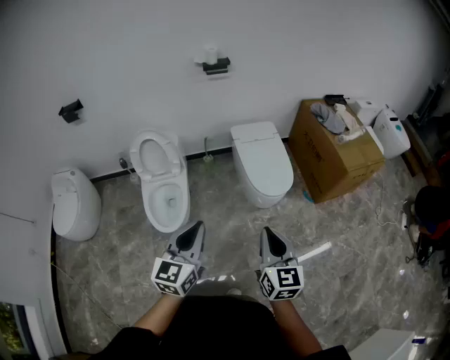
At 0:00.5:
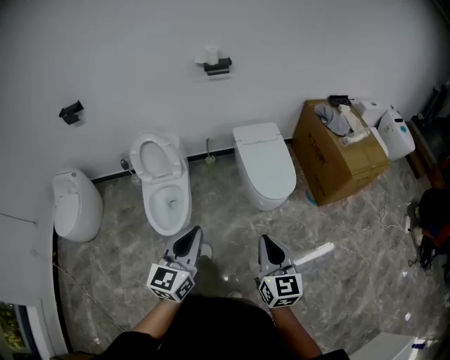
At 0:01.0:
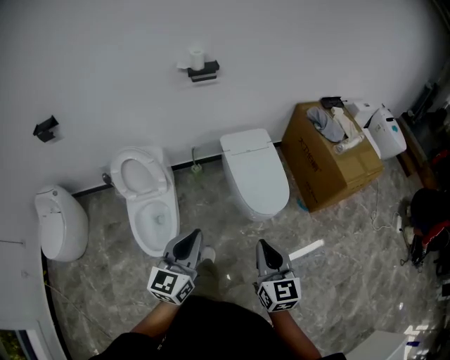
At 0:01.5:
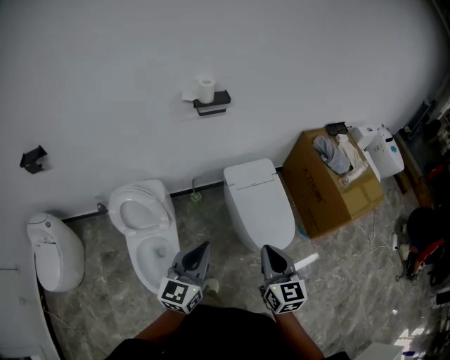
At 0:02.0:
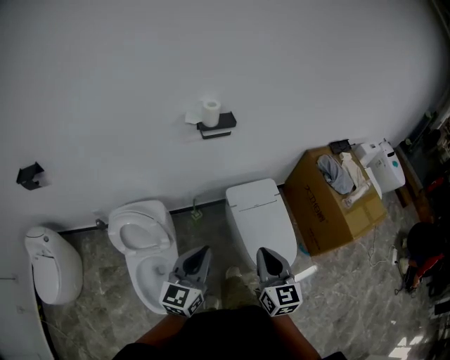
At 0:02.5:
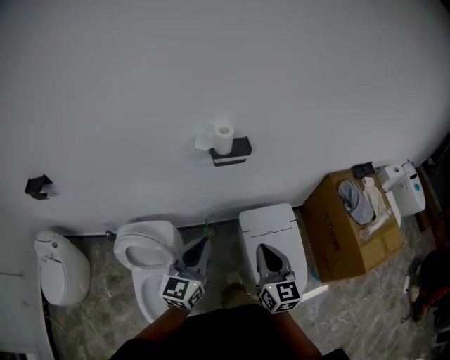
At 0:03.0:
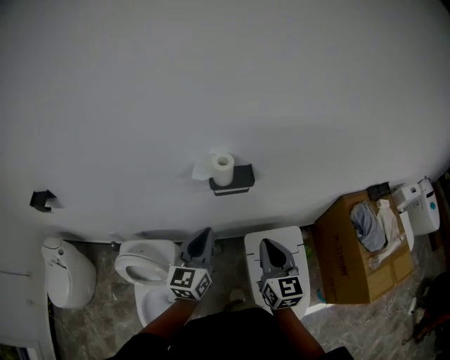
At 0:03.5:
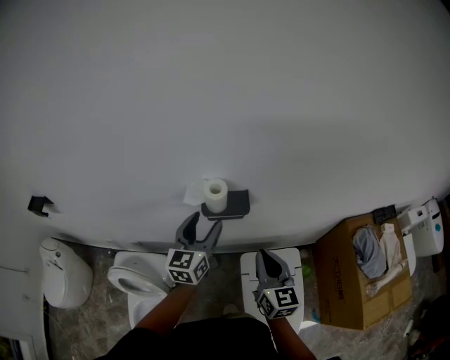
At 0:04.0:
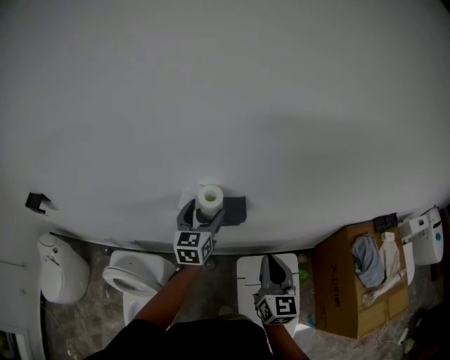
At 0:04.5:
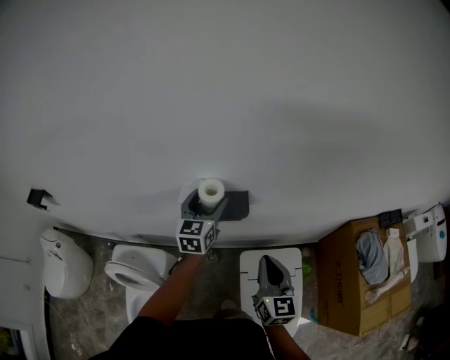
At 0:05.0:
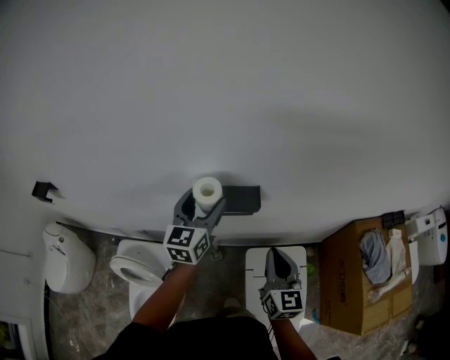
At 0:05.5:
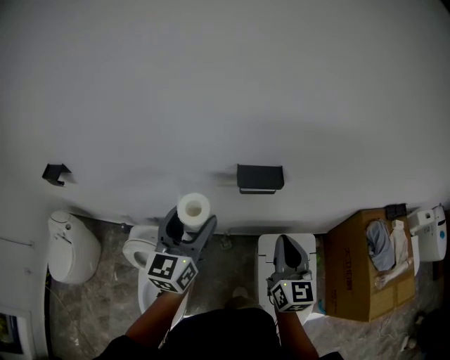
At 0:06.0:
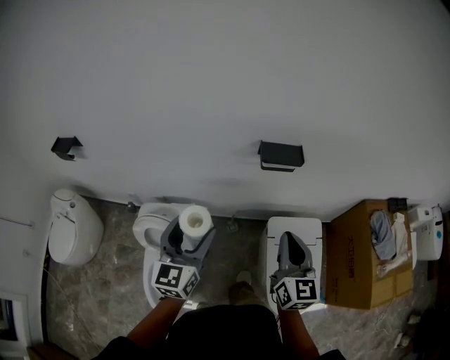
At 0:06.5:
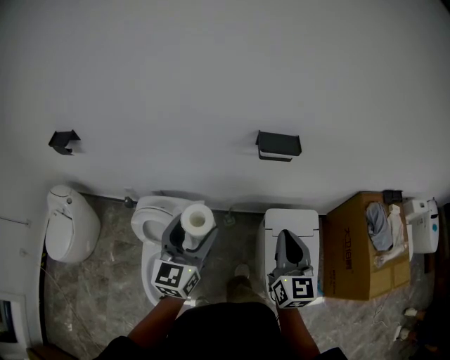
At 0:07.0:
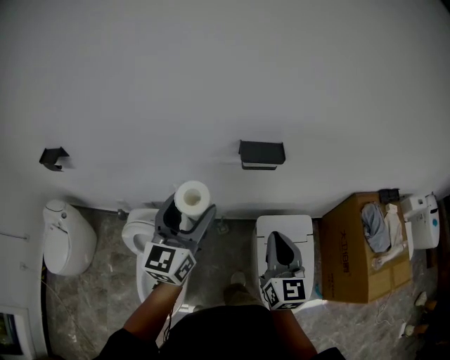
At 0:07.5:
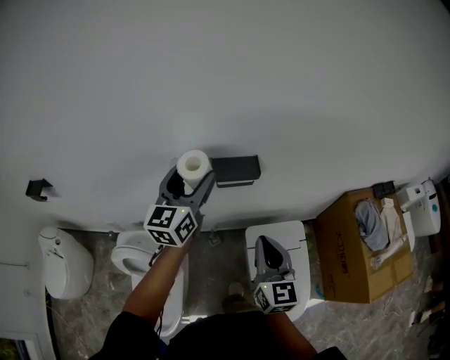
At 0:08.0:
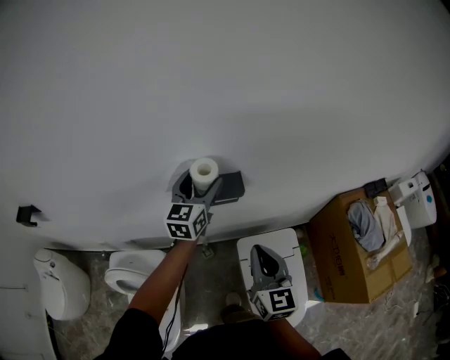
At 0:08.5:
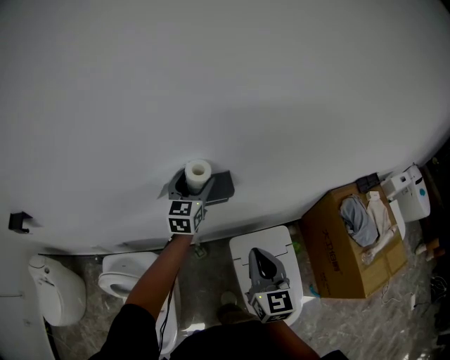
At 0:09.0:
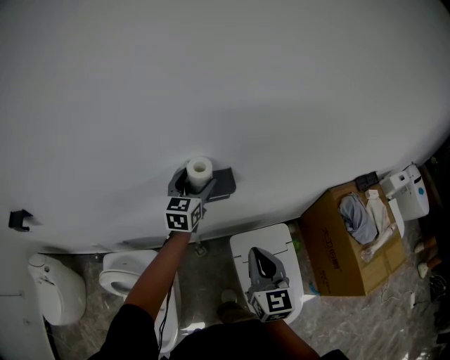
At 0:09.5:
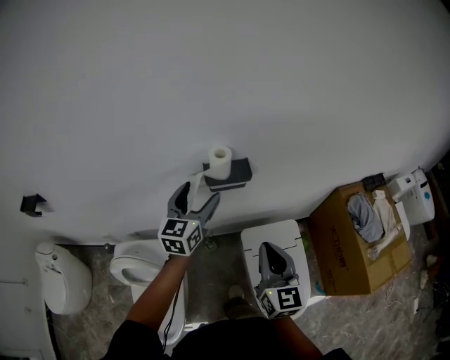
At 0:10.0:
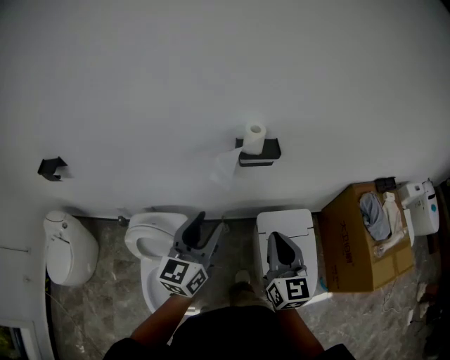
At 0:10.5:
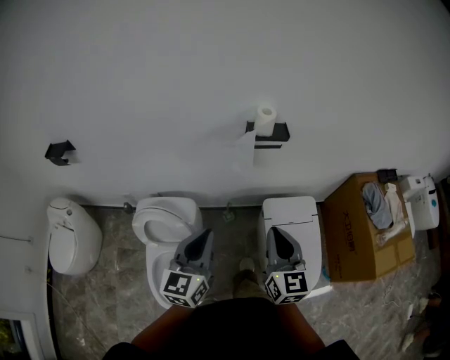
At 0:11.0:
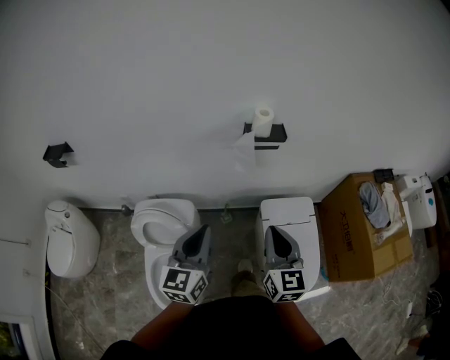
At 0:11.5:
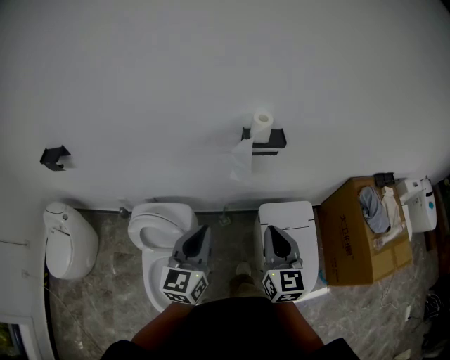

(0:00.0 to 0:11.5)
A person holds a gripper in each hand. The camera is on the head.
0:00.0 - 0:02.0: The pair of grippers is taken forward, some 50 cm.
0:02.0 - 0:04.0: The two grippers travel together, forward, roughly 50 cm. The left gripper turns by about 30 degrees, and opens up.
0:04.0 - 0:06.0: The left gripper is displaced backward and to the left by some 40 cm, while the right gripper shifts about 25 cm backward and to the left.
0:06.0 - 0:07.5: The left gripper heads forward and to the right, covering some 25 cm; the right gripper moves forward and to the right, roughly 10 cm.
0:07.5 - 0:09.5: The left gripper heads downward, covering roughly 5 cm, and reaches approximately 15 cm forward, then returns.
0:09.5 - 0:11.5: The right gripper is displaced backward and to the left by some 15 cm. The left gripper shifts some 30 cm backward, and closes.

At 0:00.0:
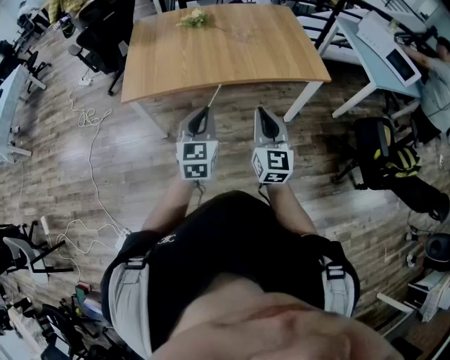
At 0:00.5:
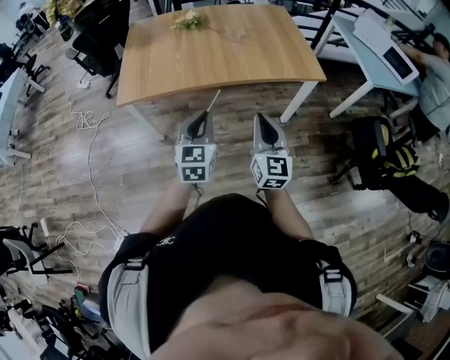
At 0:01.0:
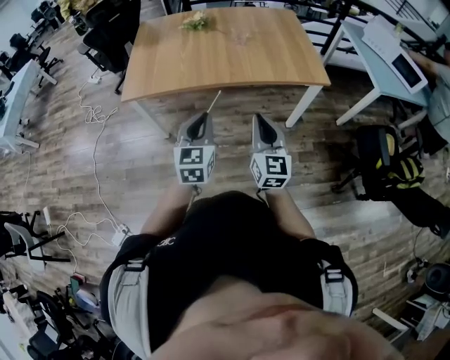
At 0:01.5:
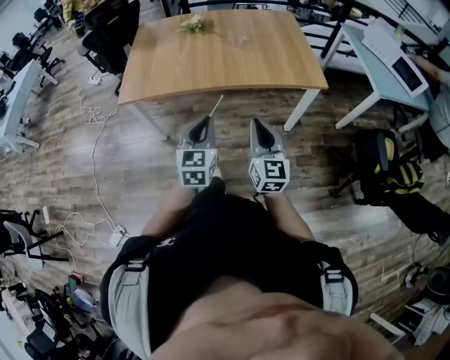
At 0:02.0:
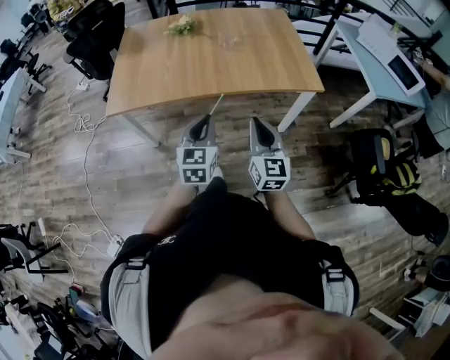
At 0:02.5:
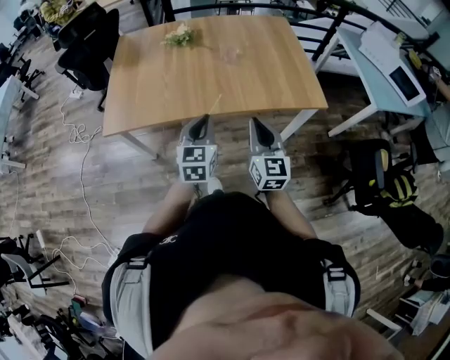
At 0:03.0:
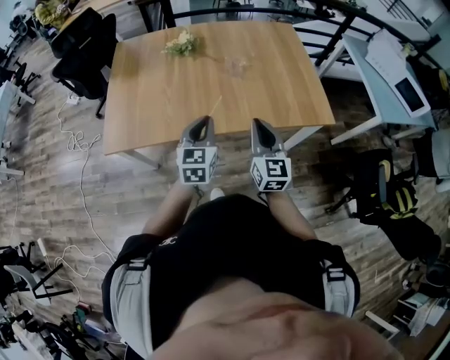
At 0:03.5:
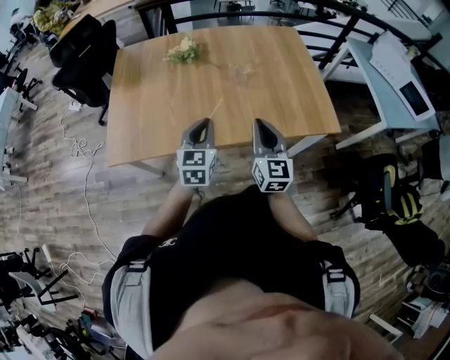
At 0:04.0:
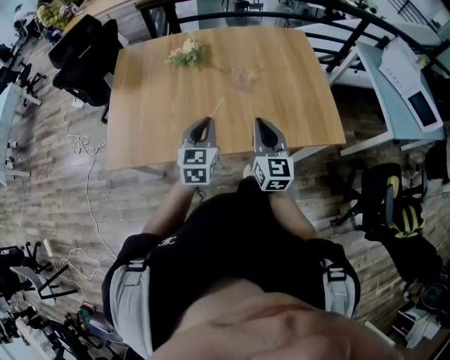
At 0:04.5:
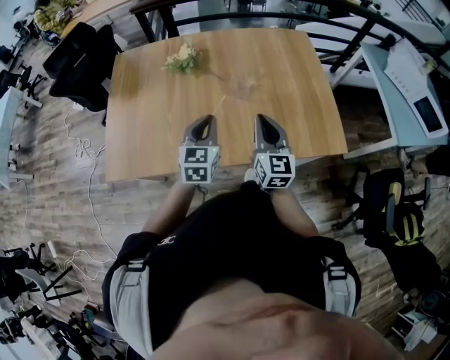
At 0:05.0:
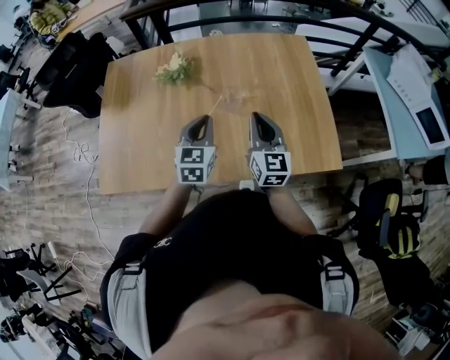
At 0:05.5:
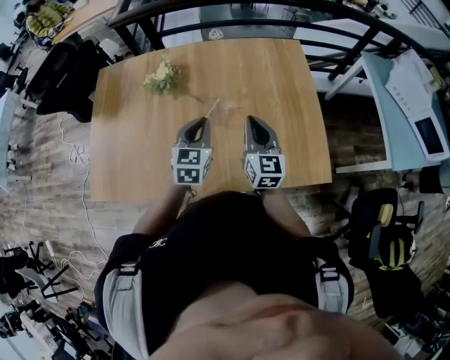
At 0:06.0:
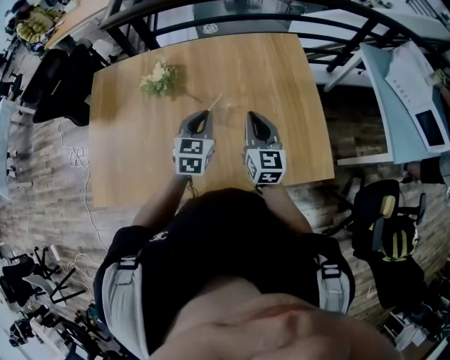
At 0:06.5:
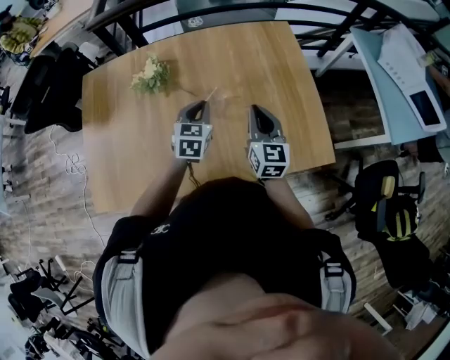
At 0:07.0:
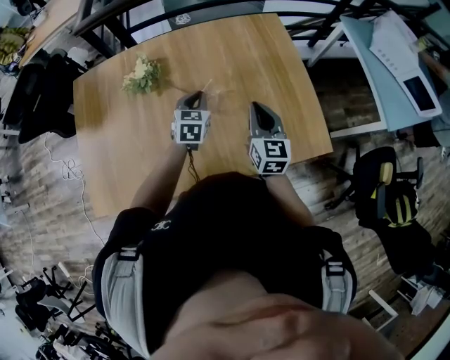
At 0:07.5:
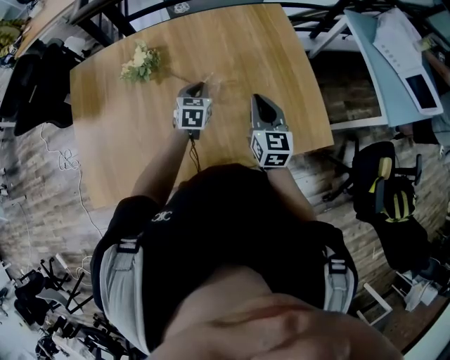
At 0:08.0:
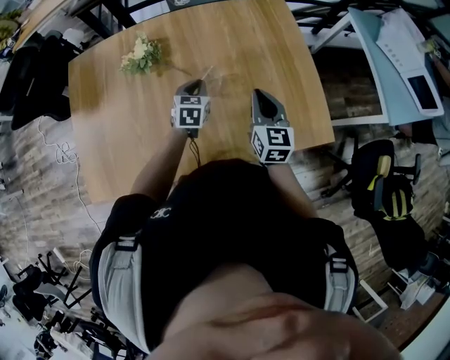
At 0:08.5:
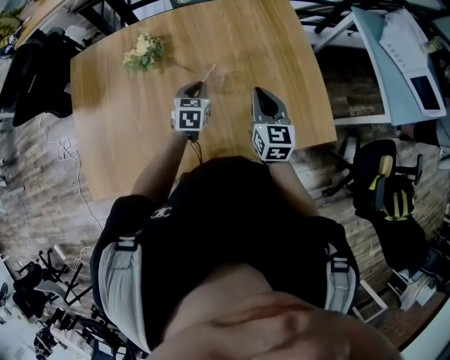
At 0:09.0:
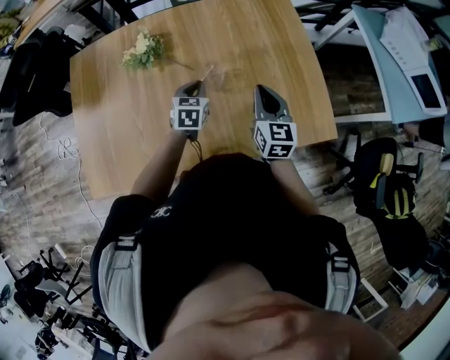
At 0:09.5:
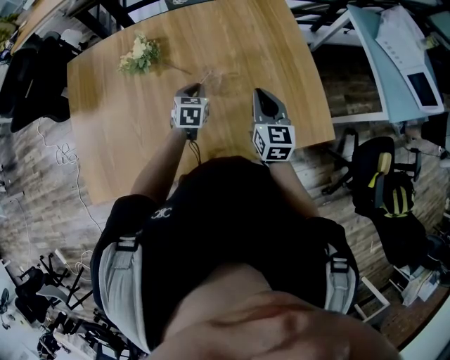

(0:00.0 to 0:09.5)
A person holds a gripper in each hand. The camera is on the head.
0:00.0 - 0:02.0: Both grippers move to the right and forward, about 10 cm.
0:02.0 - 0:04.0: Both grippers move forward, approximately 30 cm.
0:04.0 - 0:05.5: The grippers both shift forward and to the right by approximately 25 cm.
0:05.5 - 0:07.5: The left gripper heads downward and forward, covering about 15 cm.
0:07.5 - 0:09.5: The grippers make only small movements.

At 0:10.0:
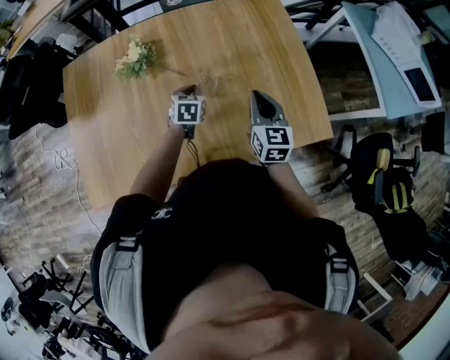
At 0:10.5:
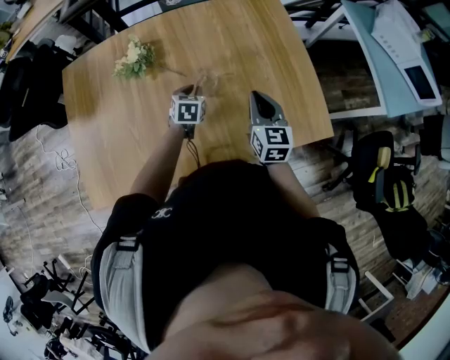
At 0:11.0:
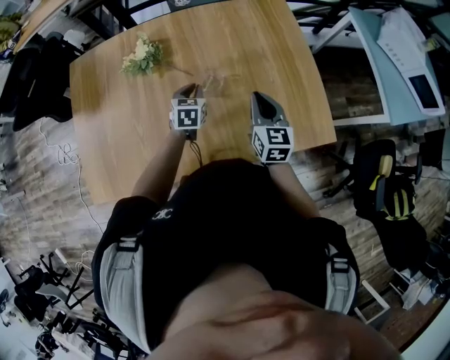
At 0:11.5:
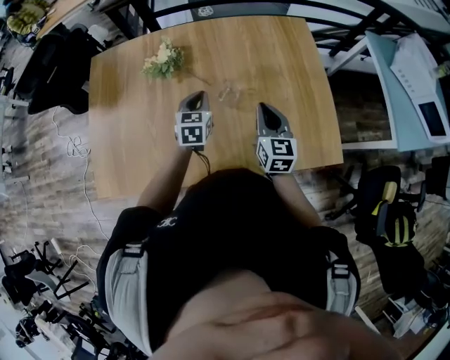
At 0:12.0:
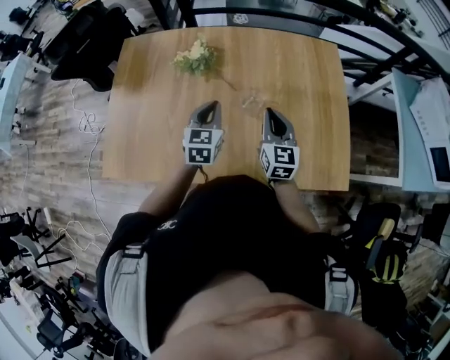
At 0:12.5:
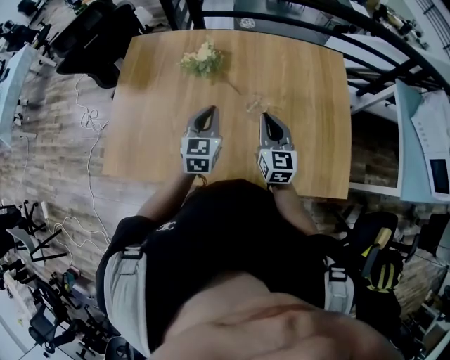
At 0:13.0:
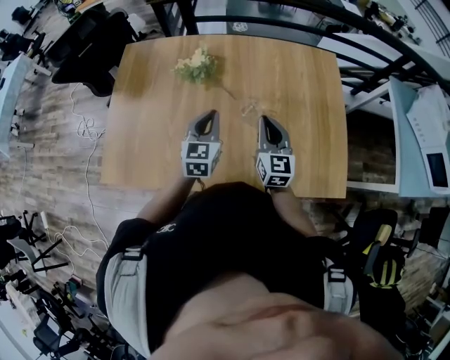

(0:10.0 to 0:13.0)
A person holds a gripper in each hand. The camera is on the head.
0:10.0 - 0:11.5: The left gripper is displaced upward by roughly 10 cm.
0:11.5 - 0:13.0: The left gripper travels upward and backward by about 10 cm. The right gripper goes roughly 5 cm to the left.

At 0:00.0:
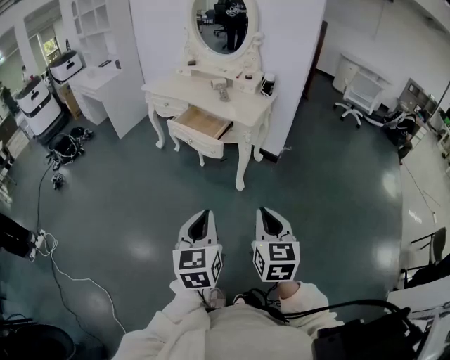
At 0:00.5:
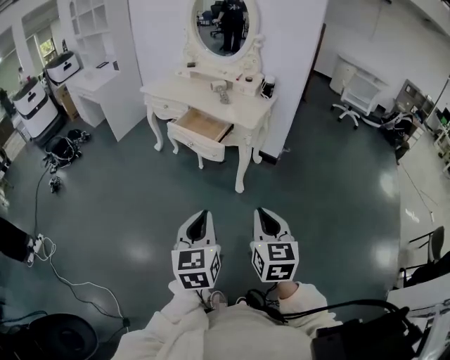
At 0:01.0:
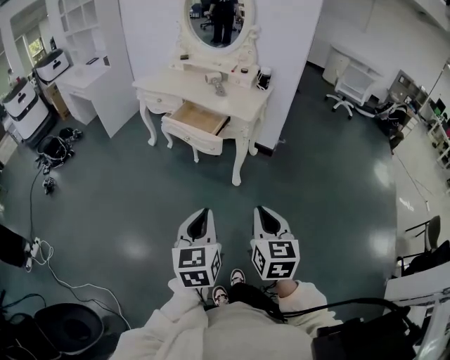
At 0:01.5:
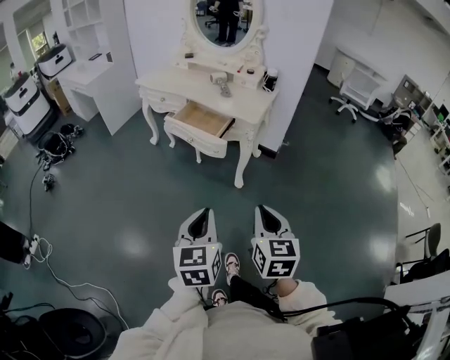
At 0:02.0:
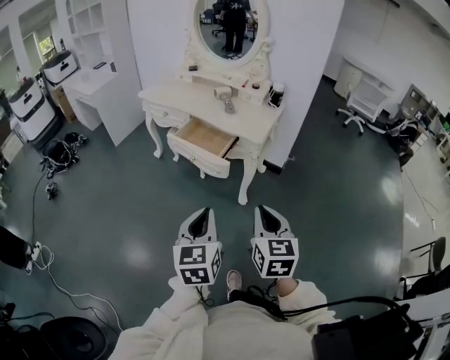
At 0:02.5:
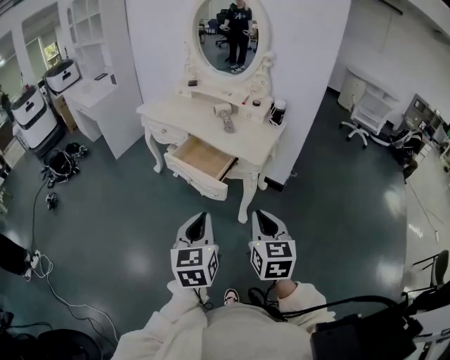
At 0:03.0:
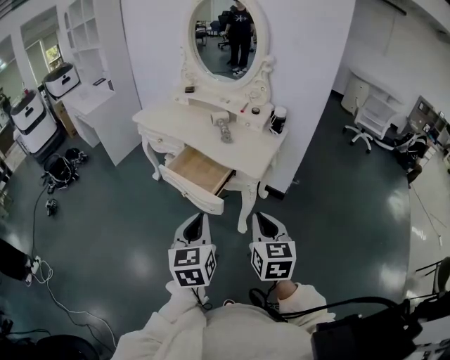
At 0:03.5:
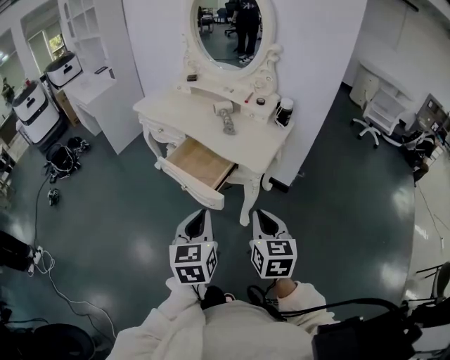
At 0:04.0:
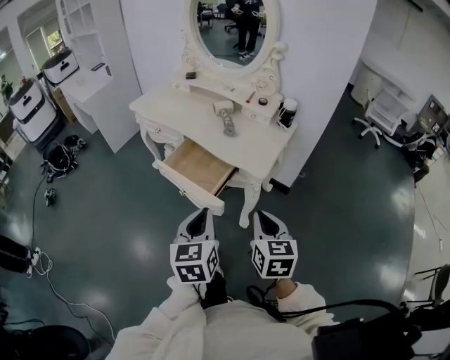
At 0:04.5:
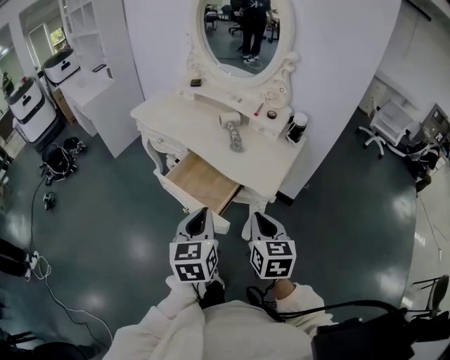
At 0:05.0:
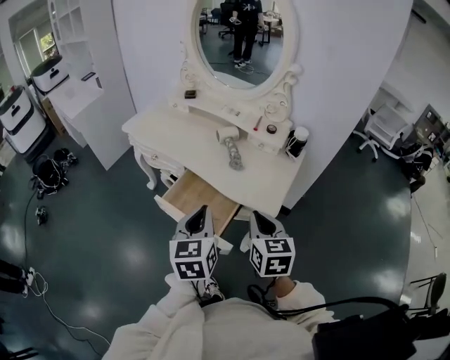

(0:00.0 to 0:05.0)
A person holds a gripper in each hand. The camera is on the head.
0:00.0 - 0:02.5: Both grippers travel together forward, approximately 25 cm.
0:02.5 - 0:05.0: Both grippers travel together forward, some 30 cm.
